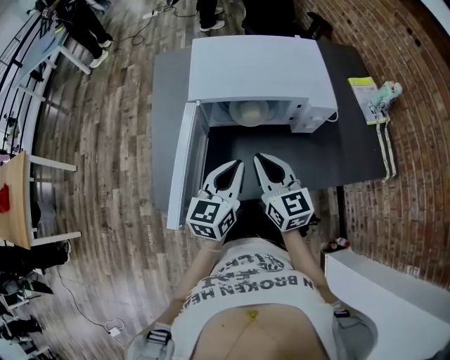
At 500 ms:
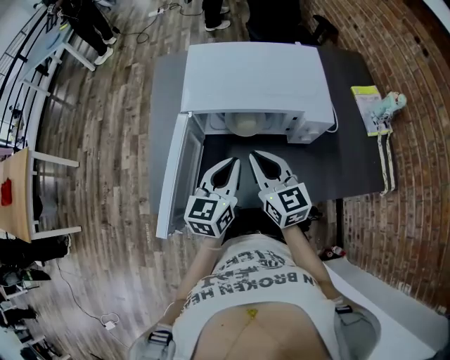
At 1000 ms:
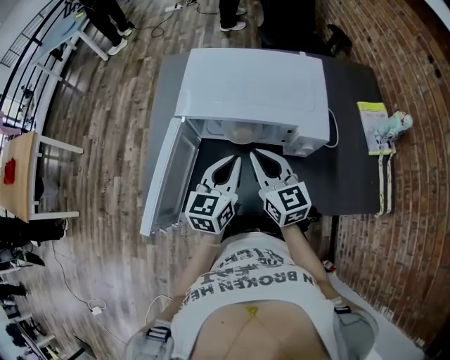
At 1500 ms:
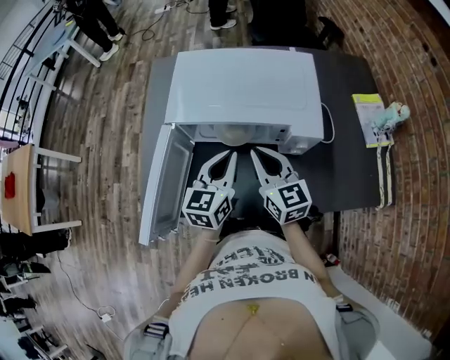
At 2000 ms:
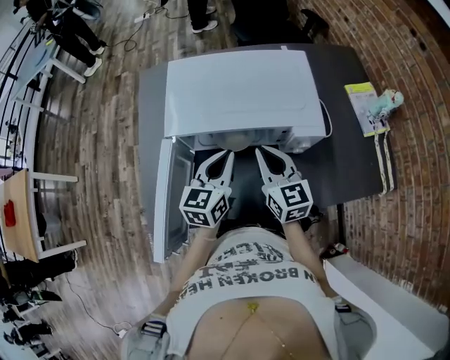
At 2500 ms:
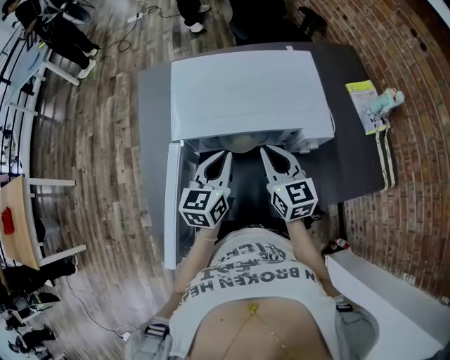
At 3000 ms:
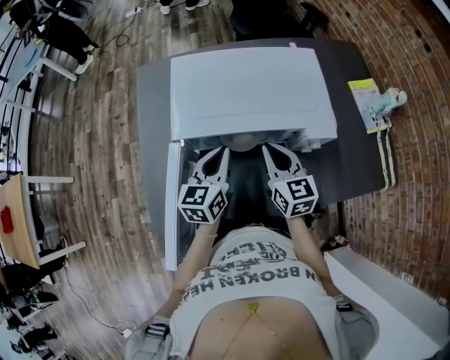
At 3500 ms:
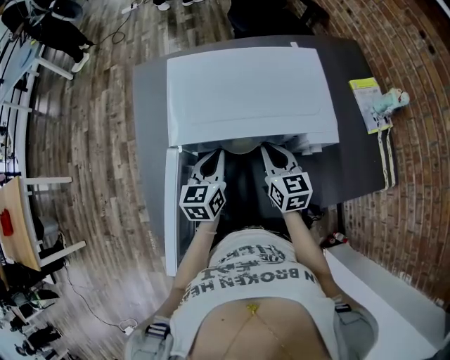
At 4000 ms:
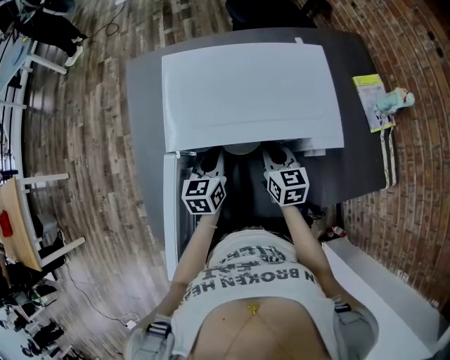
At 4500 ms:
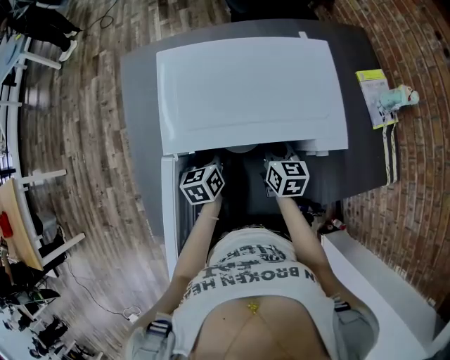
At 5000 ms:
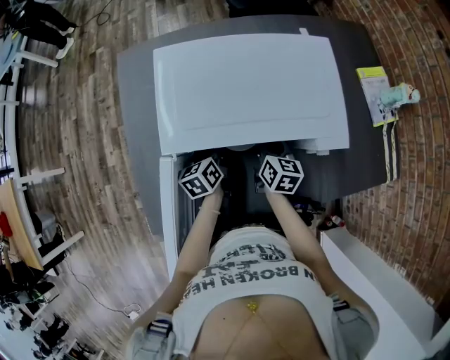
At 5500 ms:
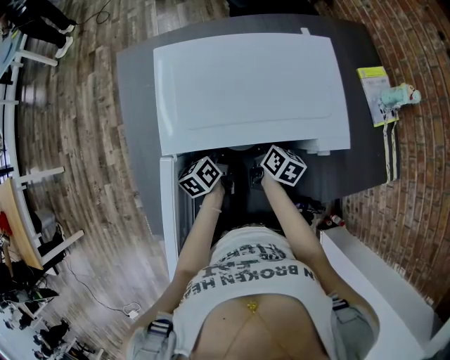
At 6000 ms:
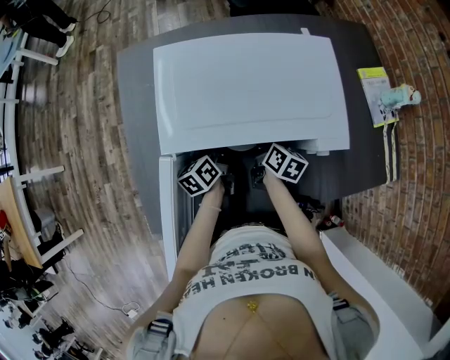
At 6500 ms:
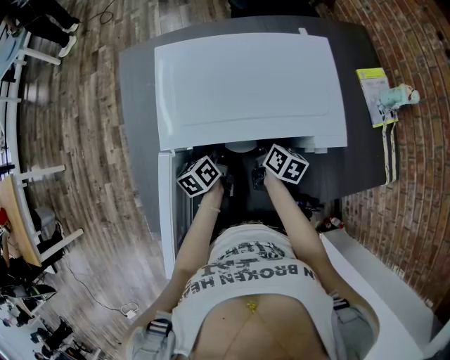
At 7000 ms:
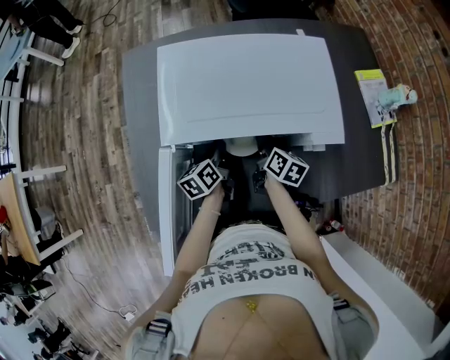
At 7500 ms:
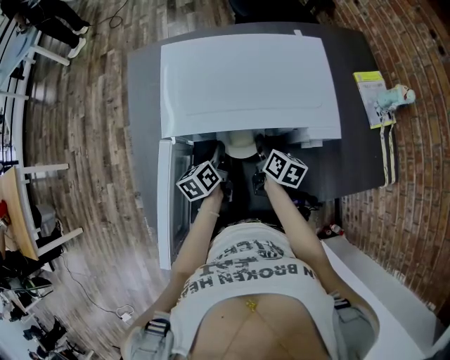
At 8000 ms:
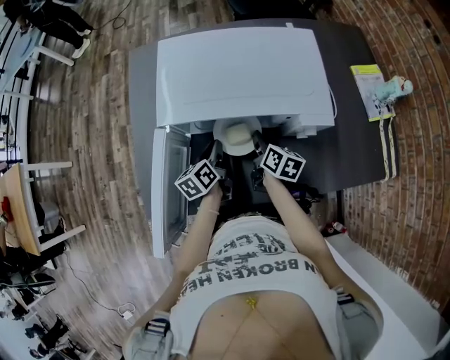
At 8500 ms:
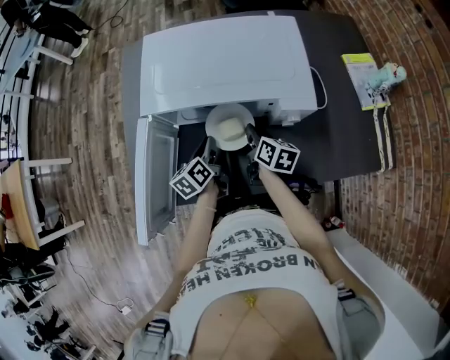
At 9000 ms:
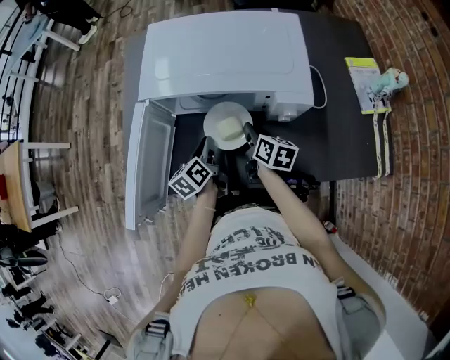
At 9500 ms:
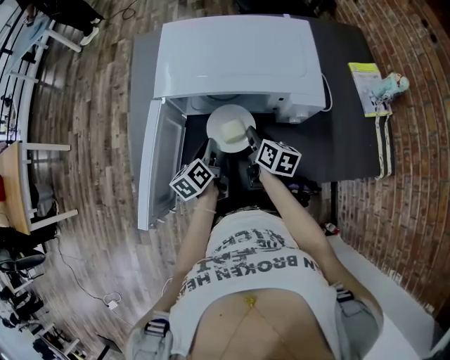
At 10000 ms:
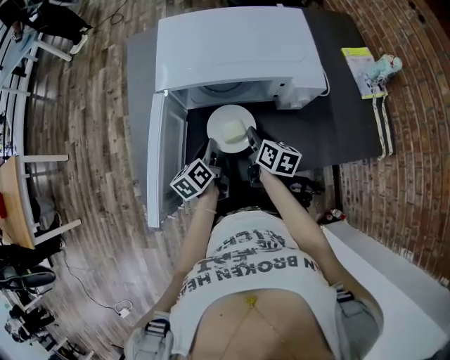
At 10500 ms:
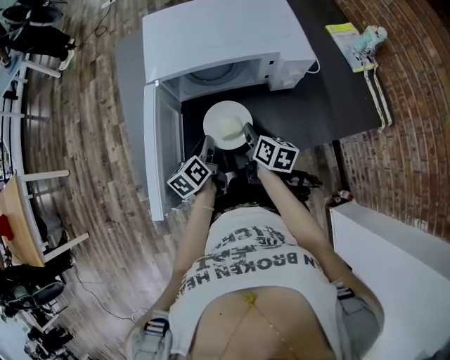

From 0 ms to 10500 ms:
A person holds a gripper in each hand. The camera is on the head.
From 0 ms to 2000 ms: Both grippers move forward and to the right, roughly 15 cm.
From 2000 ms to 4000 ms: The left gripper is displaced downward, forward and to the left by approximately 15 cm. The right gripper moves downward and forward, about 15 cm.
From 4000 ms to 6500 ms: The grippers both shift downward by roughly 5 cm. The right gripper swivels roughly 40 degrees. Meanwhile the left gripper rotates roughly 30 degrees.
From 6500 ms to 8500 ms: Both grippers move backward, approximately 10 cm.
From 8500 ms to 10500 ms: Both grippers travel together backward and to the left, approximately 10 cm.

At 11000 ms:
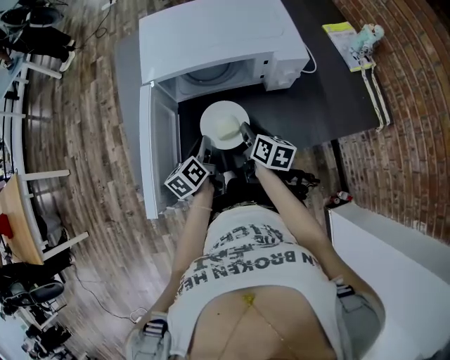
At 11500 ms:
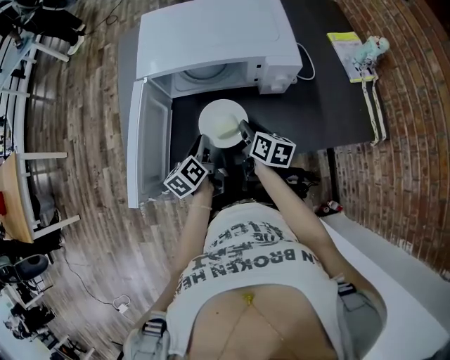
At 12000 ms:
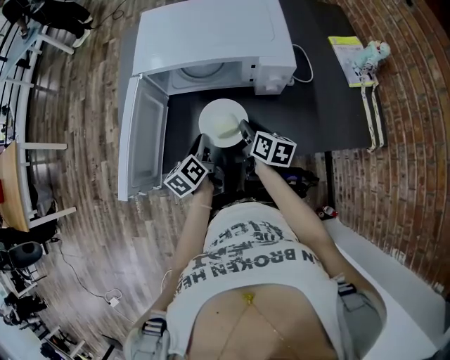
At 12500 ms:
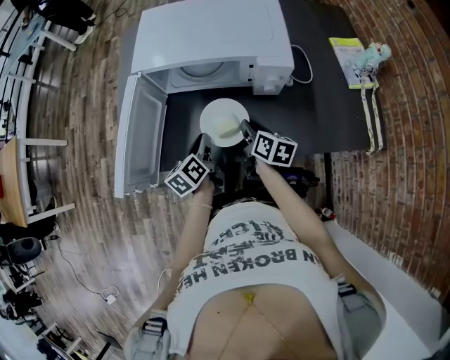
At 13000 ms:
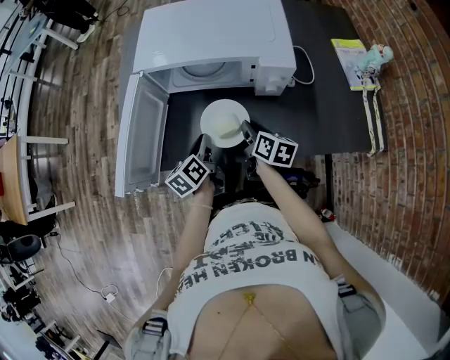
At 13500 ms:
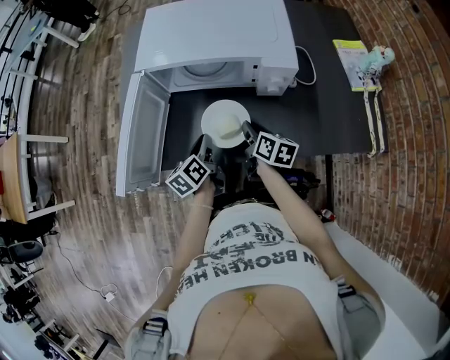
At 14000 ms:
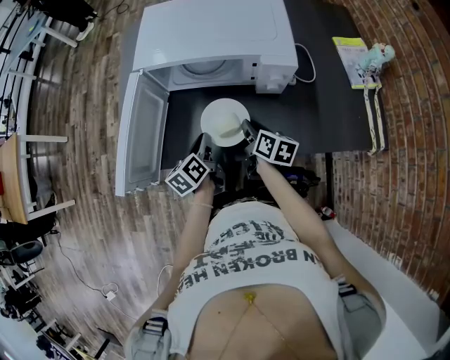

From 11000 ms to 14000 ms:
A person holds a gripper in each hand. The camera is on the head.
From 11000 ms to 12500 ms: The grippers both shift to the right by approximately 5 cm.
From 12500 ms to 14000 ms: Both grippers stay about where they are.

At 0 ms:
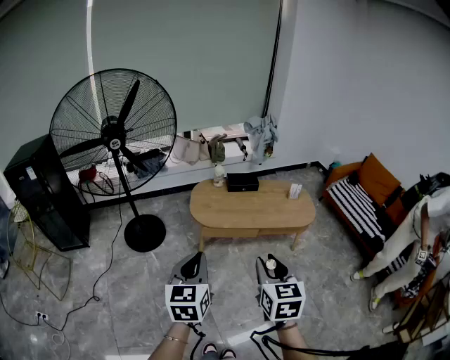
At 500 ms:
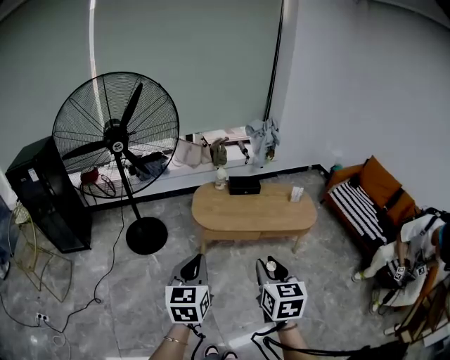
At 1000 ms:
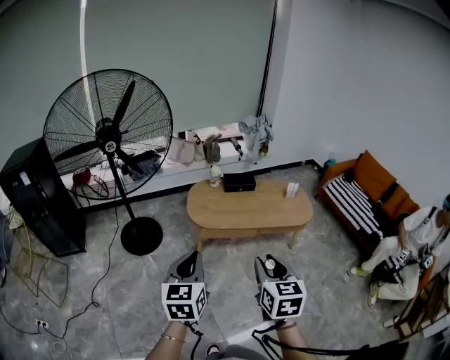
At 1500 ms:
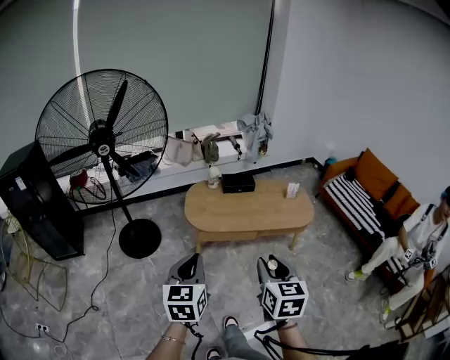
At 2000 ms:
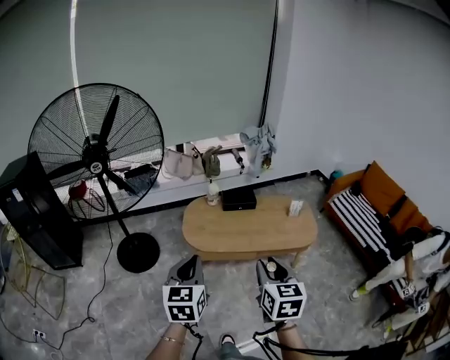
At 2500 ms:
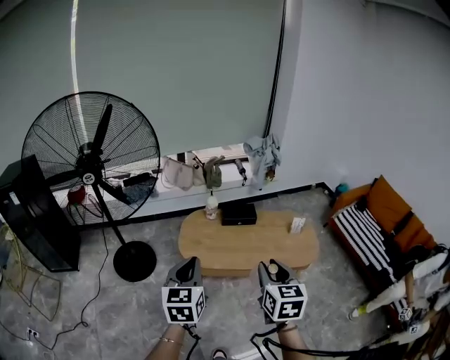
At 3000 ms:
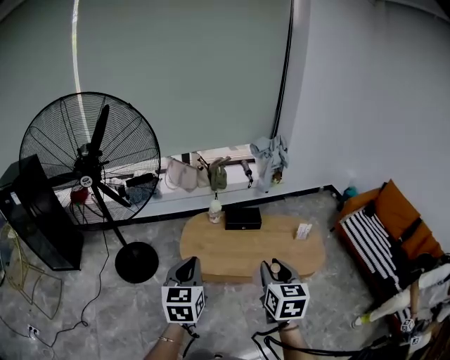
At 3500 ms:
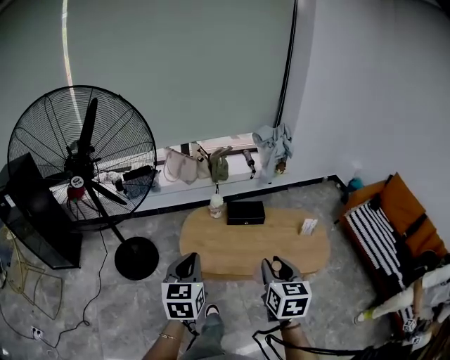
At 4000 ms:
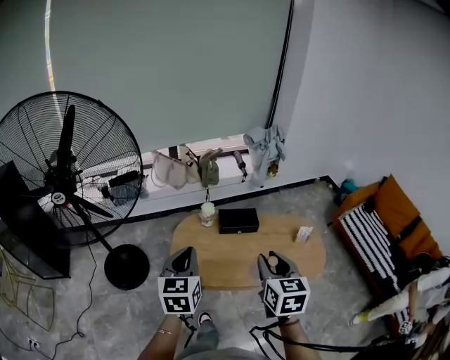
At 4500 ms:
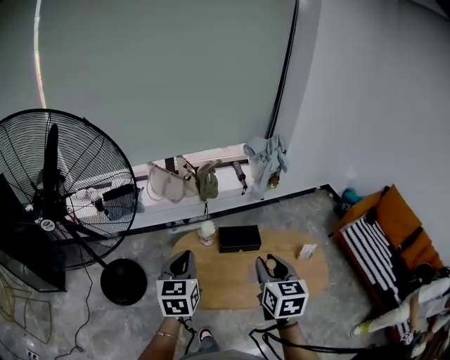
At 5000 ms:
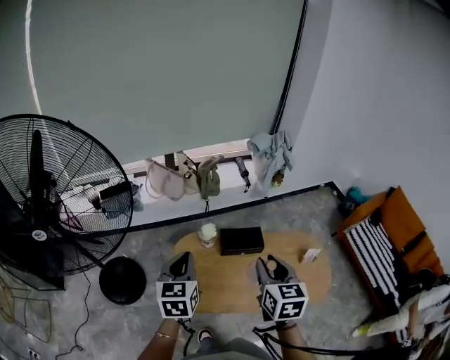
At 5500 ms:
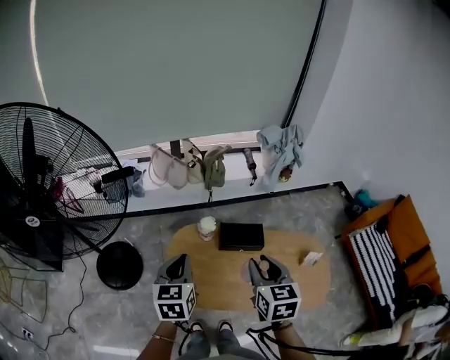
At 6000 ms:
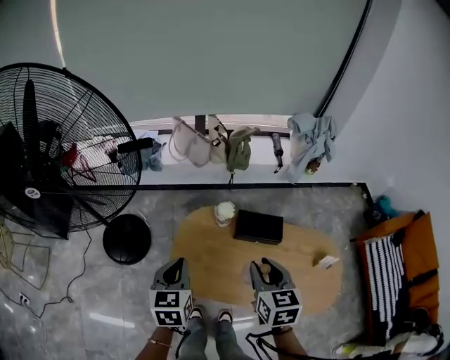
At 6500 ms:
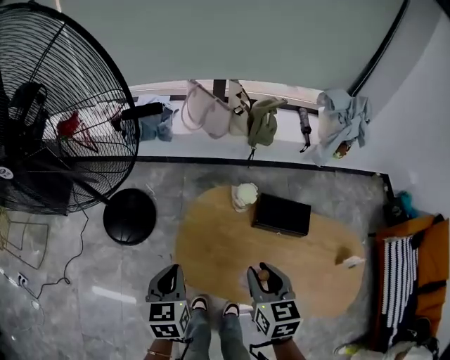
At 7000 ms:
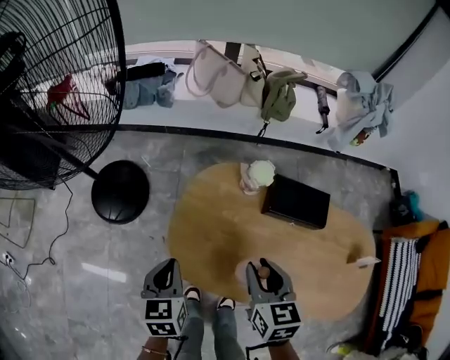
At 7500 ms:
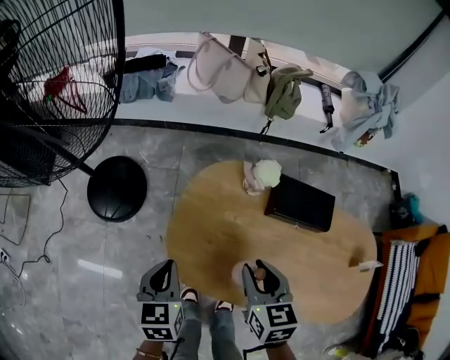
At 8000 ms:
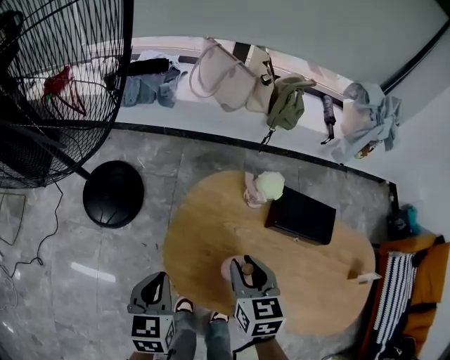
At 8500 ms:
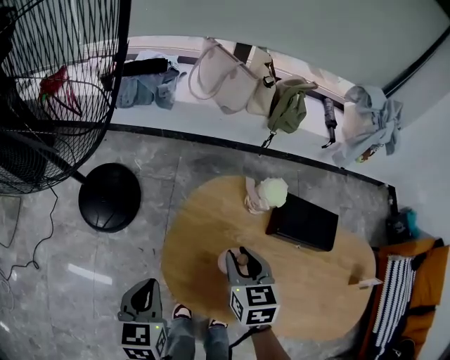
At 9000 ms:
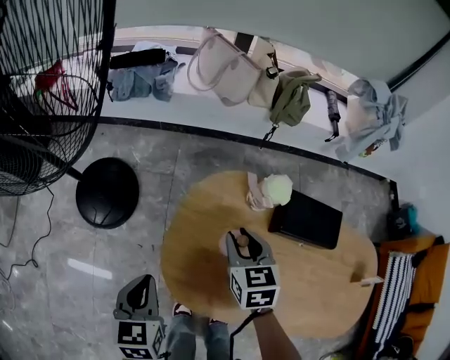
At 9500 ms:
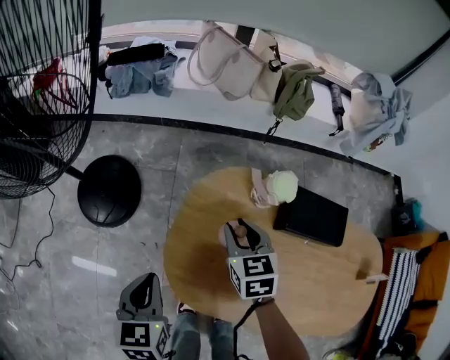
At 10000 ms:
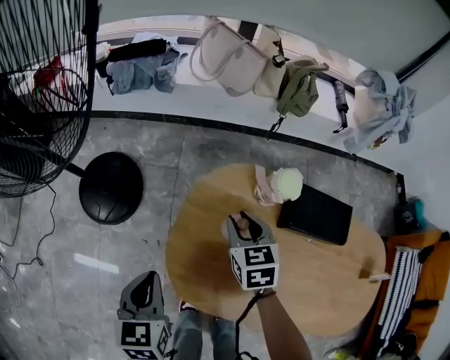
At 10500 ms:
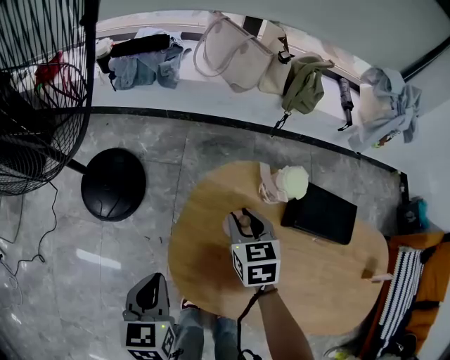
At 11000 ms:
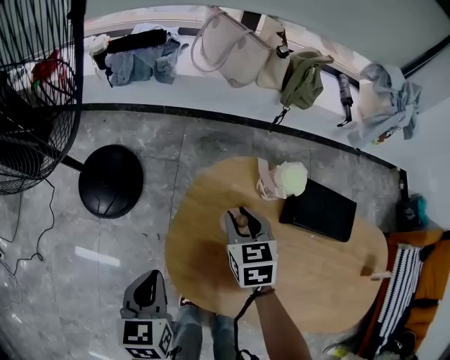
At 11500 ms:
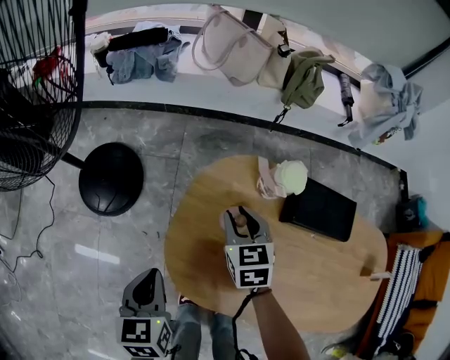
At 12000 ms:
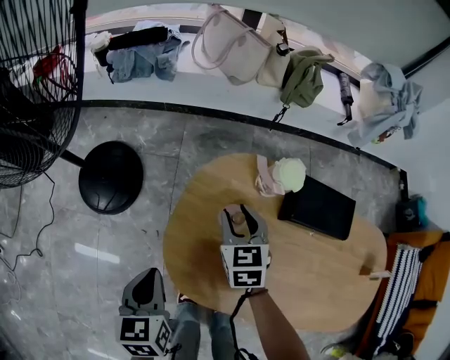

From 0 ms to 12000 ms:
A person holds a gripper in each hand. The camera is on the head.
From 0 ms to 2000 ms: The grippers both shift forward by about 15 cm.
From 2000 ms to 4000 ms: The grippers both shift forward by approximately 30 cm.
From 4000 ms to 6000 ms: The two grippers go roughly 20 cm forward and downward.
From 6000 ms to 8000 ms: Both grippers travel together downward, about 30 cm.
From 8000 ms to 10000 ms: The right gripper goes about 15 cm forward and downward, while the left gripper ends up approximately 5 cm from where it was.
From 10000 ms to 12000 ms: There are only small adjustments of the grippers.

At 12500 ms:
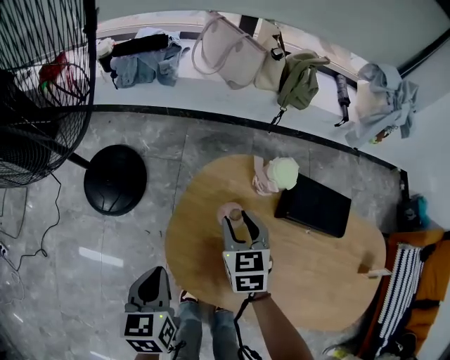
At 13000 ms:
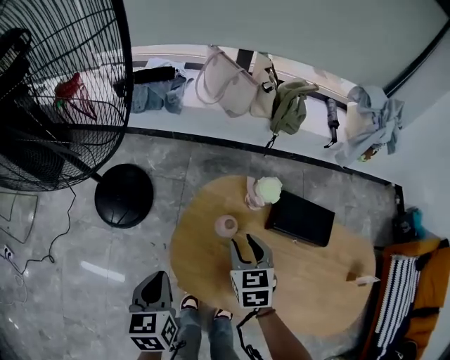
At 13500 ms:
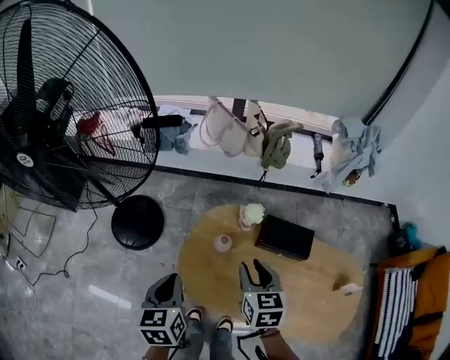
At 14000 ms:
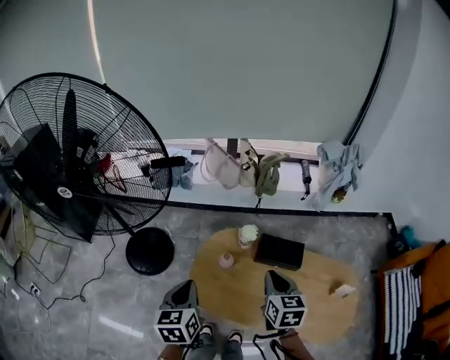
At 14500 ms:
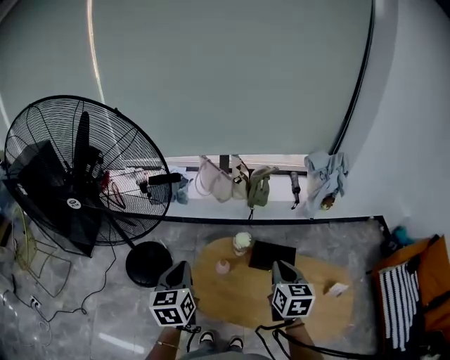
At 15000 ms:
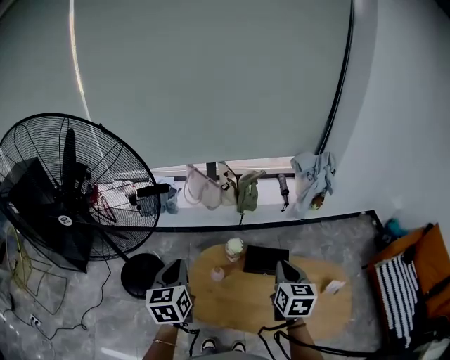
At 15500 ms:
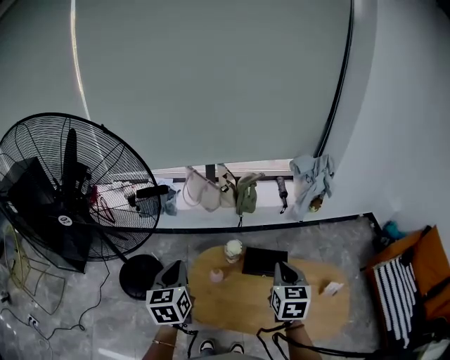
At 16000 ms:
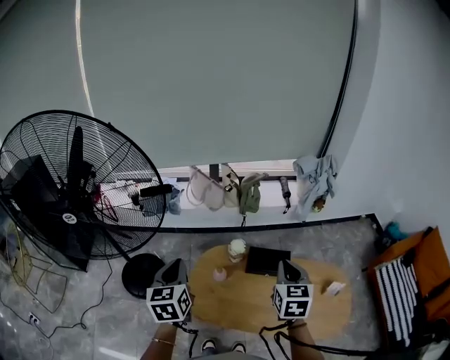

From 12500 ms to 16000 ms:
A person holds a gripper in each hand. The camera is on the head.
From 12500 ms to 14500 ms: The left gripper heads upward, covering some 40 cm, and swivels about 20 degrees. The right gripper shifts approximately 40 cm upward and backward, rotates about 20 degrees, and closes its fingers.
From 14500 ms to 16000 ms: The grippers stay close to where they were, moving slightly.
